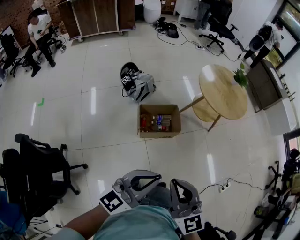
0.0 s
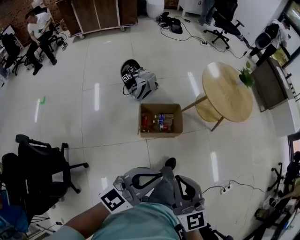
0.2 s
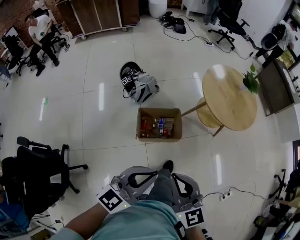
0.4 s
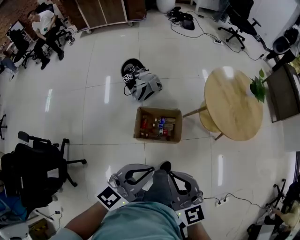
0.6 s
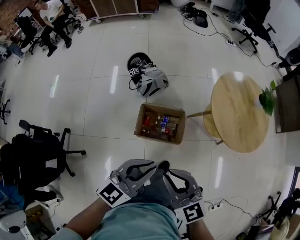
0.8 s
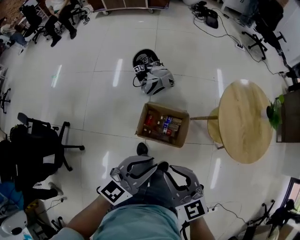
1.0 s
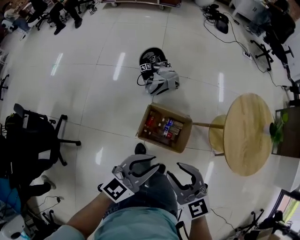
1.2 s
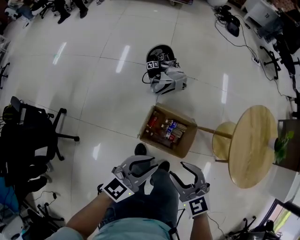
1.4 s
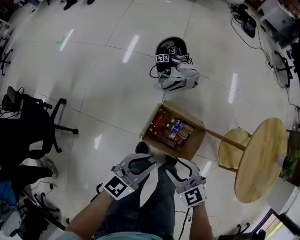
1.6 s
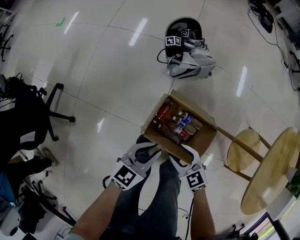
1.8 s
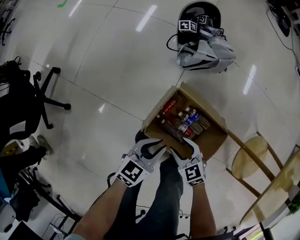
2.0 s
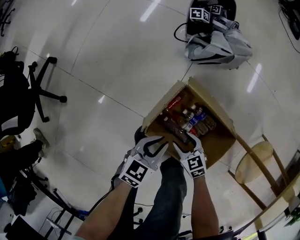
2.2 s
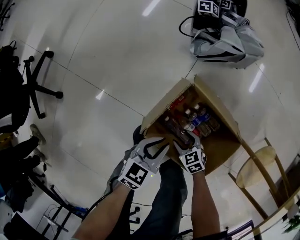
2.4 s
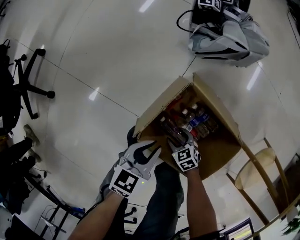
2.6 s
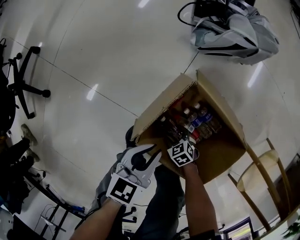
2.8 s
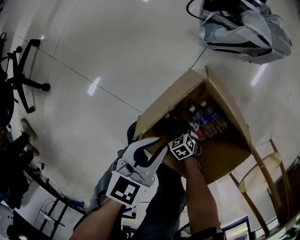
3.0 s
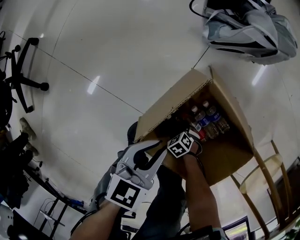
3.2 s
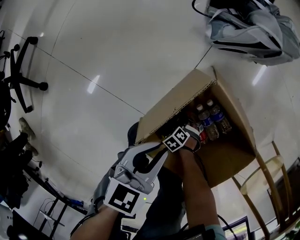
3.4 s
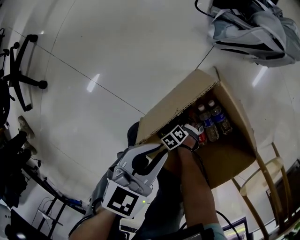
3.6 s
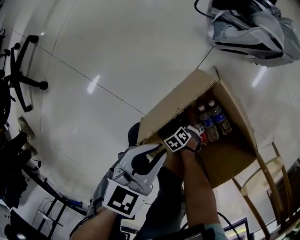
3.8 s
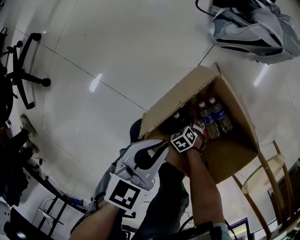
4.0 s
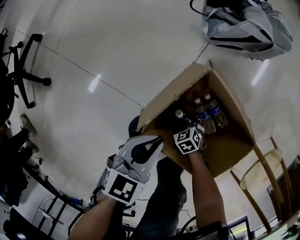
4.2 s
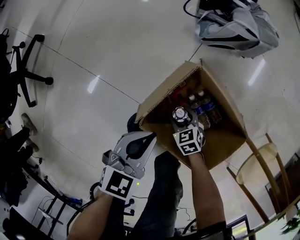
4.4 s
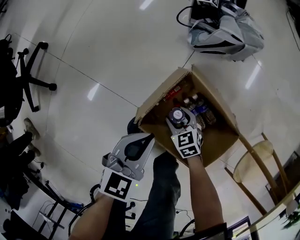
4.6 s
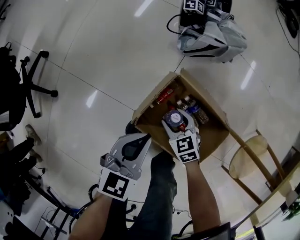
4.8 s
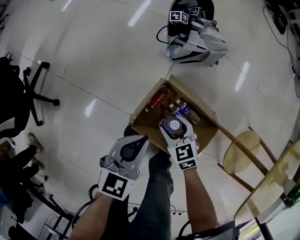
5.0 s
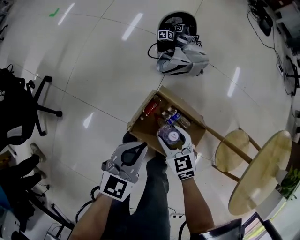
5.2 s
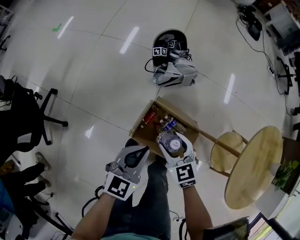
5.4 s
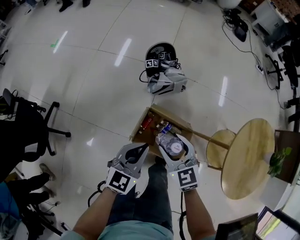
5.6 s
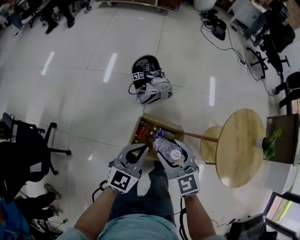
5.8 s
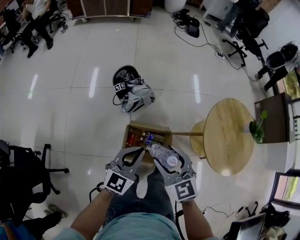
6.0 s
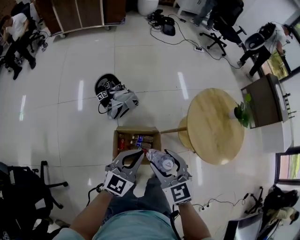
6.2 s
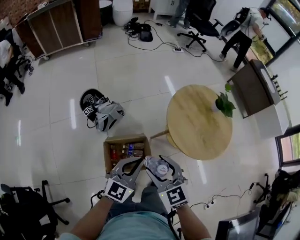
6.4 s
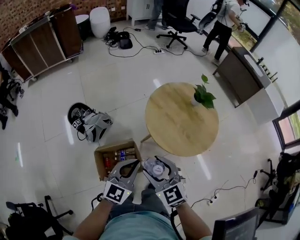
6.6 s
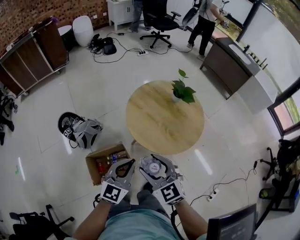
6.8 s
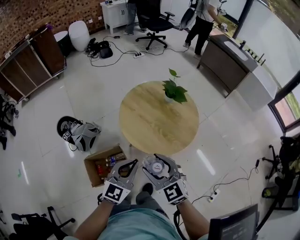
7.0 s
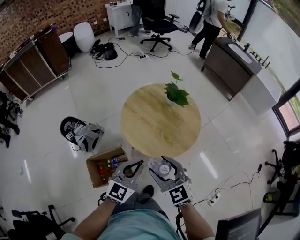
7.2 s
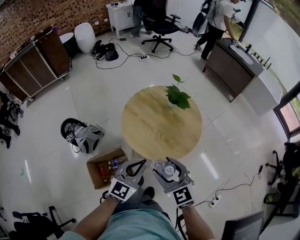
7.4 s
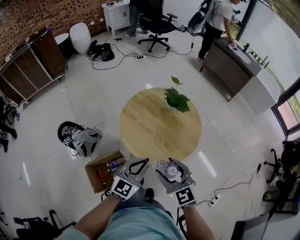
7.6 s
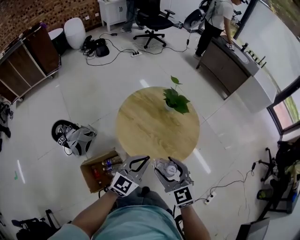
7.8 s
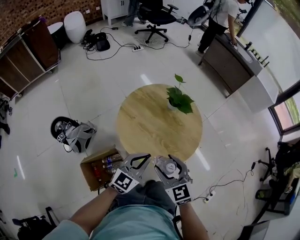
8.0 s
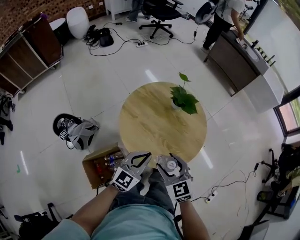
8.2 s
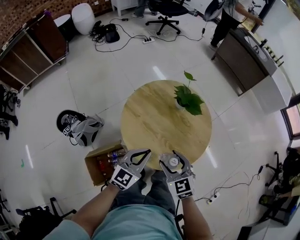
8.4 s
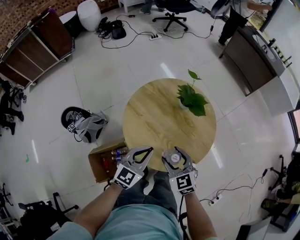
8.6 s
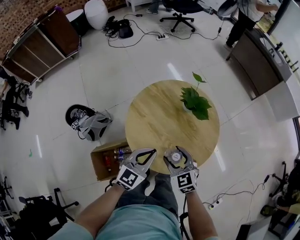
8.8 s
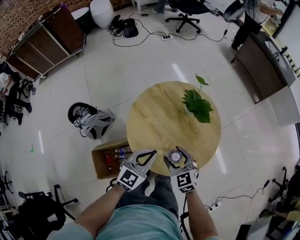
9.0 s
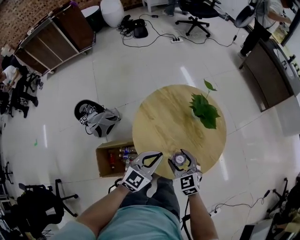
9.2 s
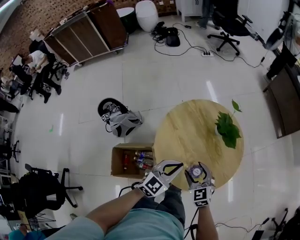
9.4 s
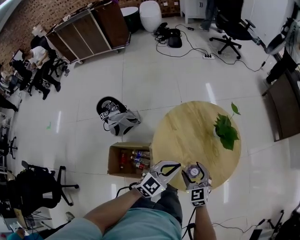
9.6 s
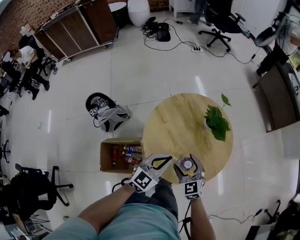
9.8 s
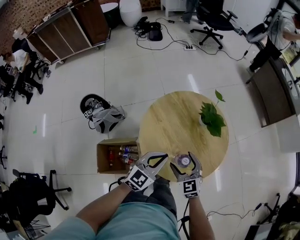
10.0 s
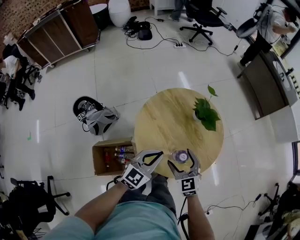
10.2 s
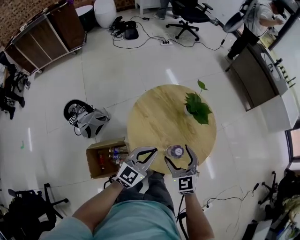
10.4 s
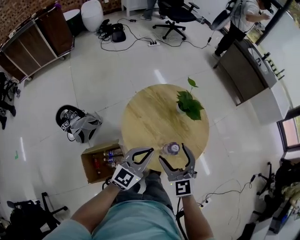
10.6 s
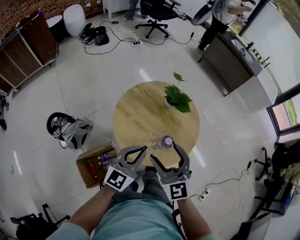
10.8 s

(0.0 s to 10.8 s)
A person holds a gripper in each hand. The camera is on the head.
0.0 s - 1.6 s: The right gripper moves about 50 cm, angles its fingers downward, by roughly 30 degrees, and opens its fingers; the left gripper changes place by roughly 50 cm, and swivels approximately 40 degrees.
1.6 s - 3.0 s: The right gripper travels downward by about 70 cm, and angles its fingers downward, by roughly 30 degrees; the left gripper goes roughly 40 cm downward, and changes its angle by about 30 degrees.
3.0 s - 4.6 s: The left gripper travels upward by approximately 10 cm, while the right gripper is displaced upward by approximately 20 cm, and rotates roughly 20 degrees.
4.6 s - 6.2 s: Both grippers move upward, approximately 60 cm. The left gripper turns by about 50 degrees. The right gripper changes its angle by approximately 50 degrees.
6.2 s - 7.8 s: The pair of grippers is taken roughly 40 cm. The right gripper swivels roughly 30 degrees, while the left gripper rotates roughly 30 degrees.
7.8 s - 9.2 s: The left gripper is displaced forward and downward by about 10 cm; the right gripper shifts approximately 20 cm downward and forward.
9.2 s - 10.8 s: The right gripper goes some 15 cm upward, and turns by some 30 degrees. Meanwhile the left gripper heads upward, covering some 10 cm, and swivels some 20 degrees.

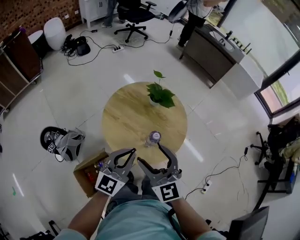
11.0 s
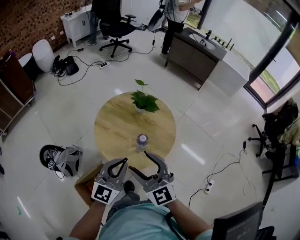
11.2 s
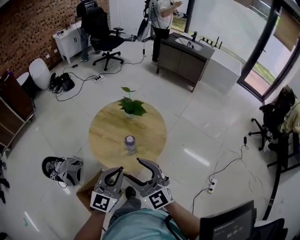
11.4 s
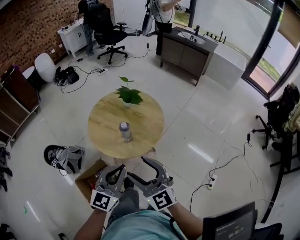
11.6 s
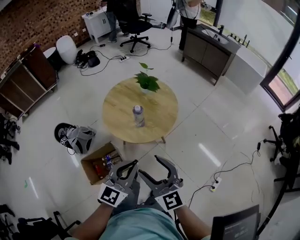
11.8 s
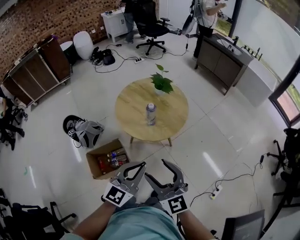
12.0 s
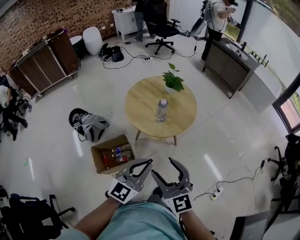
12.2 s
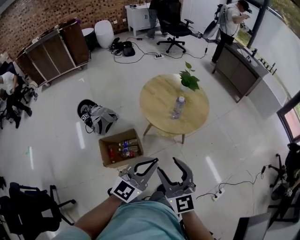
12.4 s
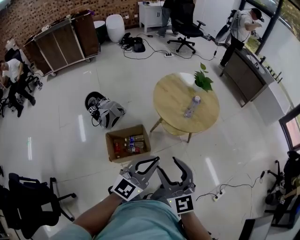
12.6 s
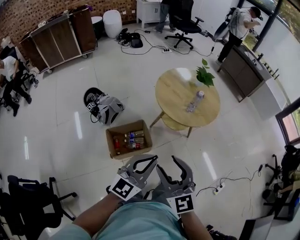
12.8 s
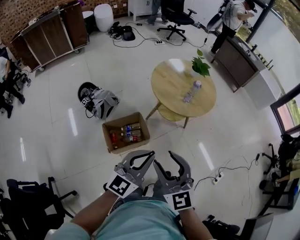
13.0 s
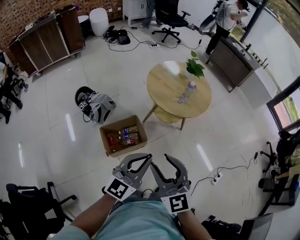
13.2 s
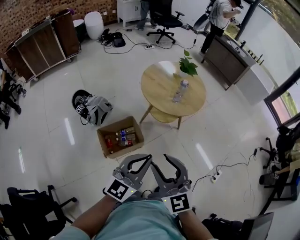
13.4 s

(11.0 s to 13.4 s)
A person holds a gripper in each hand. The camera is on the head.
11.0 s - 12.2 s: The grippers both shift backward by roughly 30 cm.
12.2 s - 13.4 s: Both grippers move to the left and backward, roughly 25 cm.

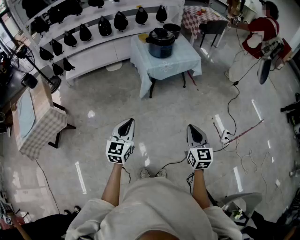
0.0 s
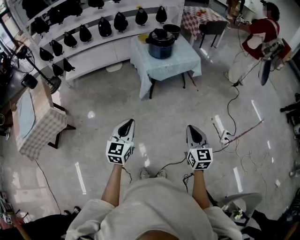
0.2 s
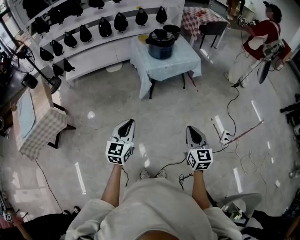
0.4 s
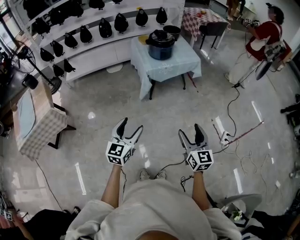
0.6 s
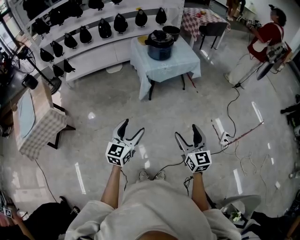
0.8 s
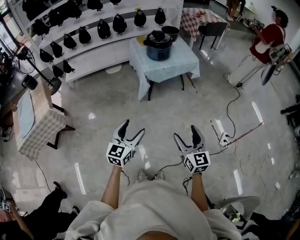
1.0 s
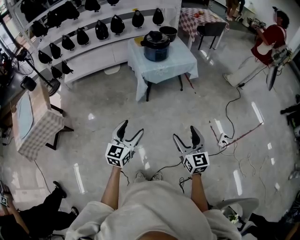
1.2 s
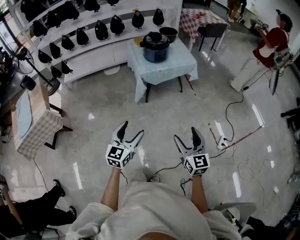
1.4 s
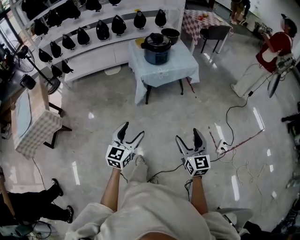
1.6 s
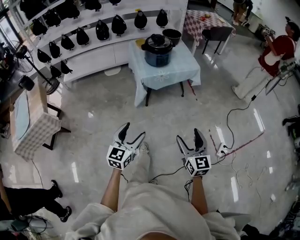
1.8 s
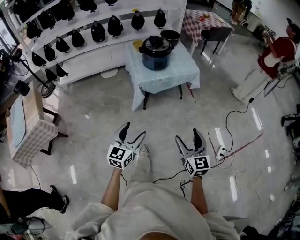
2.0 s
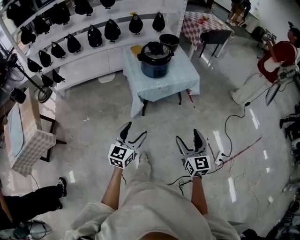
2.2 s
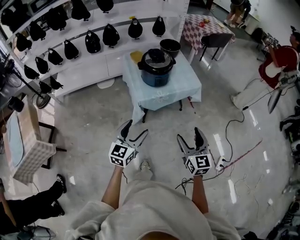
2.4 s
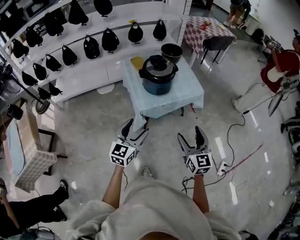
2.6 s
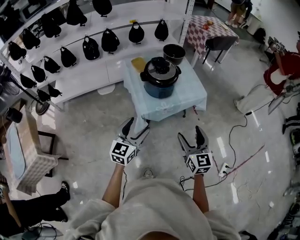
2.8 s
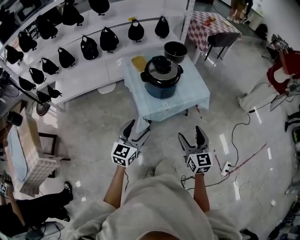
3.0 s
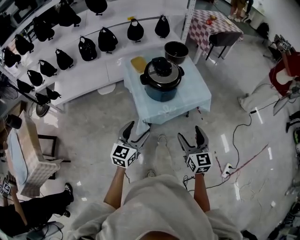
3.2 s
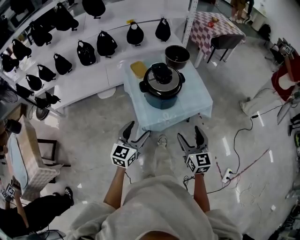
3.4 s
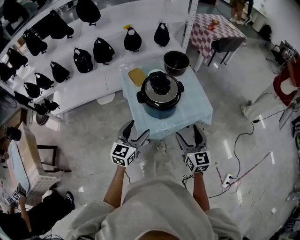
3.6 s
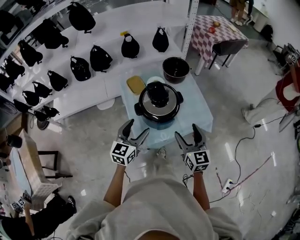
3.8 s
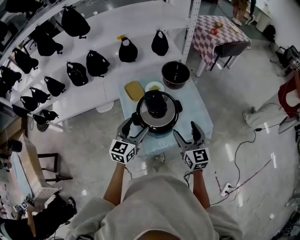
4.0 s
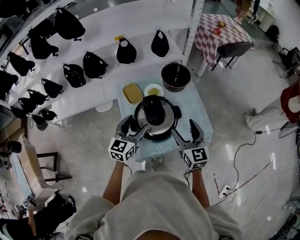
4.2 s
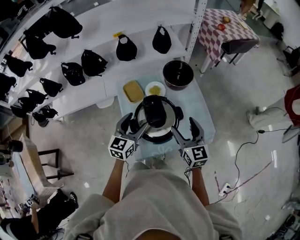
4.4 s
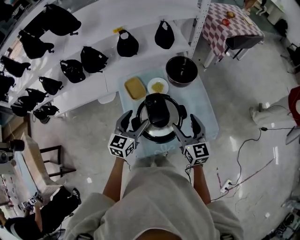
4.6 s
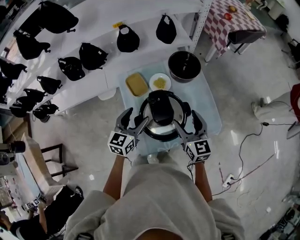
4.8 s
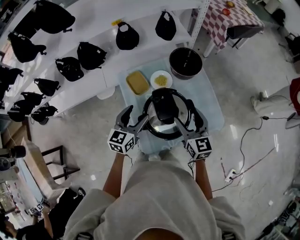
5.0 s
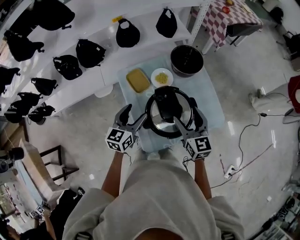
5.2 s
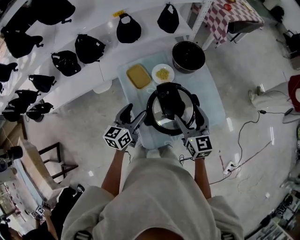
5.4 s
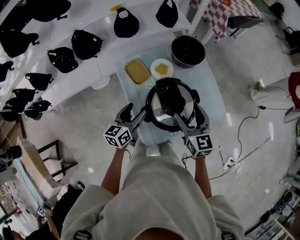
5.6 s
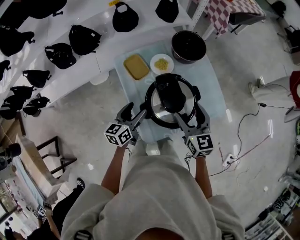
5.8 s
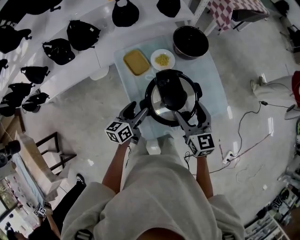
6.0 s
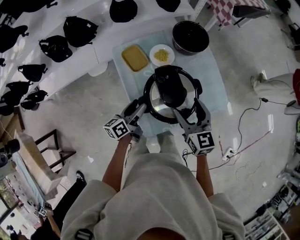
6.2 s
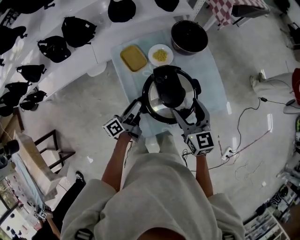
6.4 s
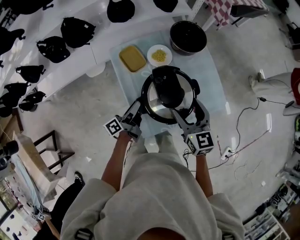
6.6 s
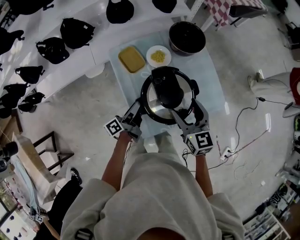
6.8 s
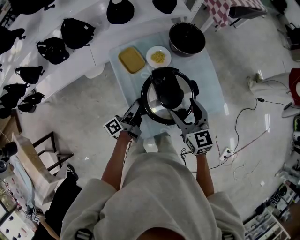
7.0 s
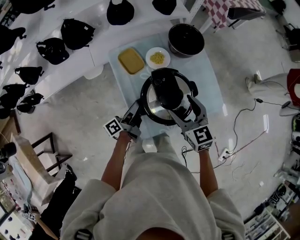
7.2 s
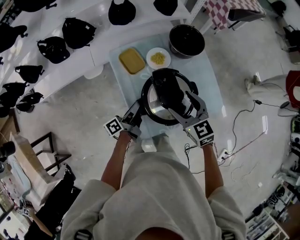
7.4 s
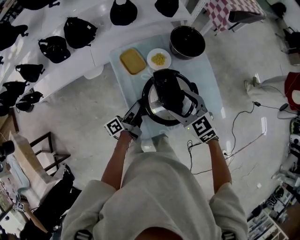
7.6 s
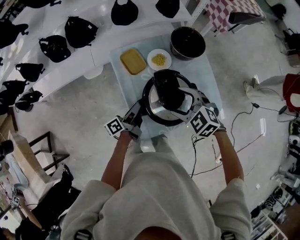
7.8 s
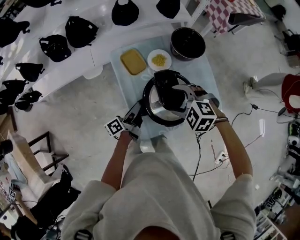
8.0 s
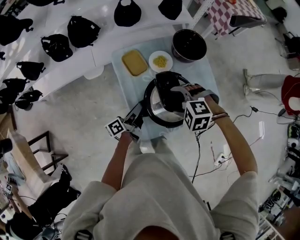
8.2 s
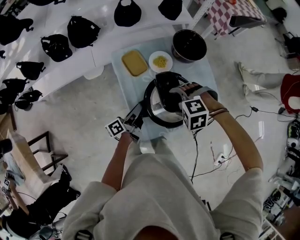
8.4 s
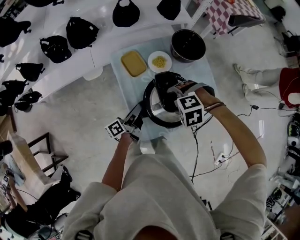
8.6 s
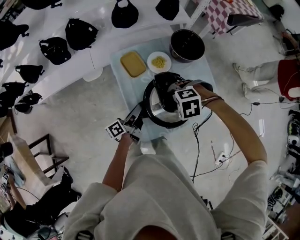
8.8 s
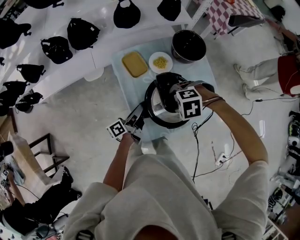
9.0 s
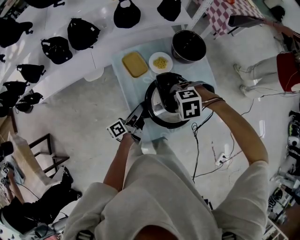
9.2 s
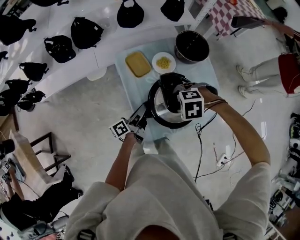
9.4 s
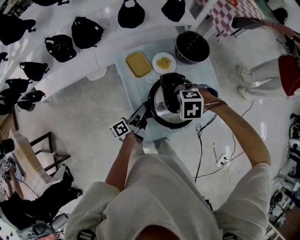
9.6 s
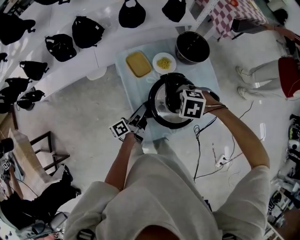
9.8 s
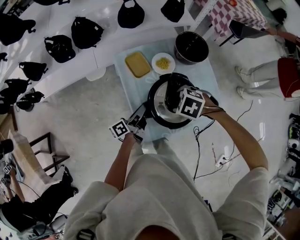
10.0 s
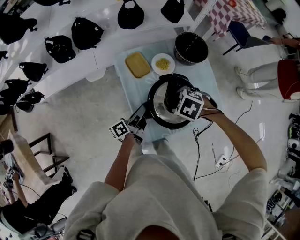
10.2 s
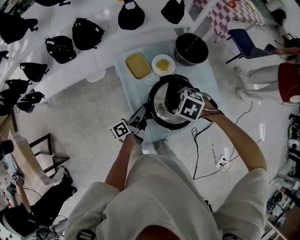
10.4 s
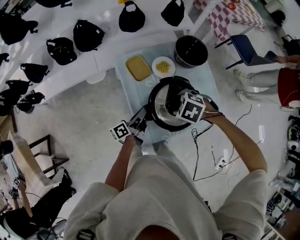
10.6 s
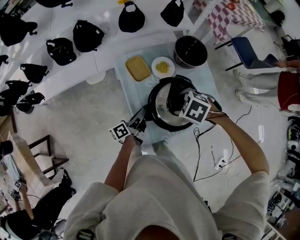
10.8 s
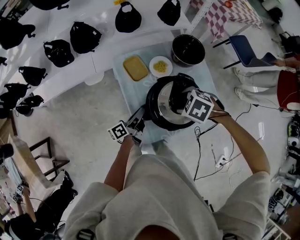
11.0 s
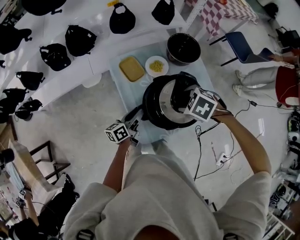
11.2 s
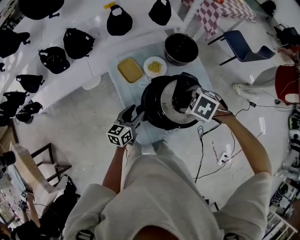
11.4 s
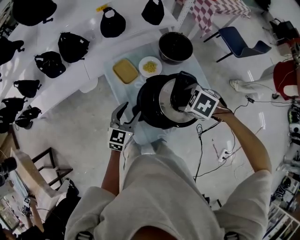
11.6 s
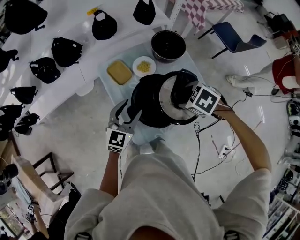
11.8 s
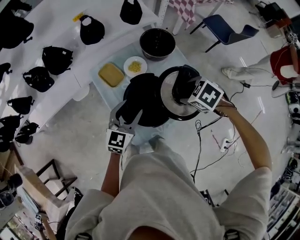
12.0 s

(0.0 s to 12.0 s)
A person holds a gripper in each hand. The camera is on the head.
0.0 s - 1.6 s: The right gripper is displaced to the right by some 5 cm, and opens its fingers. Meanwhile the left gripper goes roughly 10 cm to the right, and opens.
1.6 s - 3.0 s: Both grippers are carried forward, roughly 40 cm.
3.0 s - 4.4 s: The two grippers travel together, forward, some 40 cm.
4.4 s - 6.0 s: The left gripper travels downward and to the left by roughly 15 cm, and swivels some 30 degrees. The right gripper is displaced to the left and downward by roughly 10 cm.
6.0 s - 7.6 s: The right gripper turns by some 40 degrees. Meanwhile the left gripper twists about 40 degrees counterclockwise, seen from behind, and closes up.
7.6 s - 9.0 s: The right gripper goes approximately 5 cm downward, and tips its fingers downward by approximately 40 degrees.
9.0 s - 10.4 s: The right gripper changes its angle by some 30 degrees.
10.4 s - 12.0 s: The right gripper moves about 15 cm, and turns by about 20 degrees; the left gripper travels upward by some 10 cm, rolls clockwise, seen from behind, by approximately 80 degrees, and opens up.
